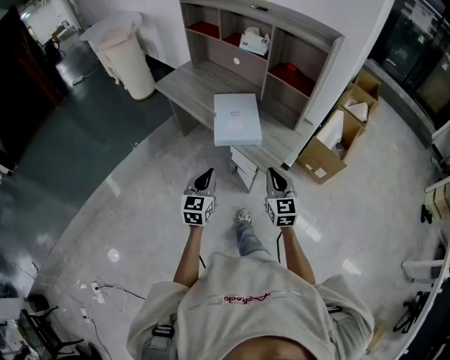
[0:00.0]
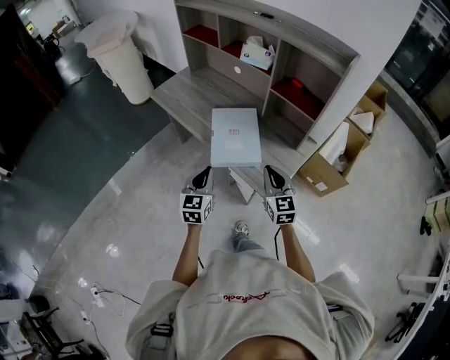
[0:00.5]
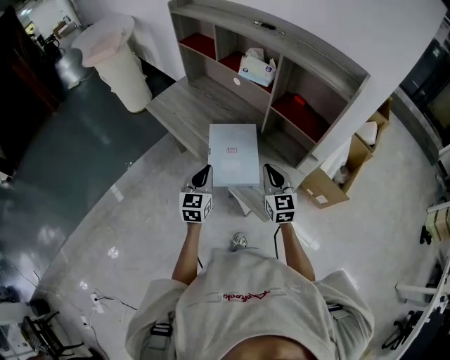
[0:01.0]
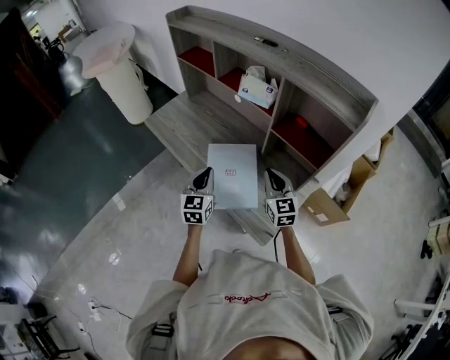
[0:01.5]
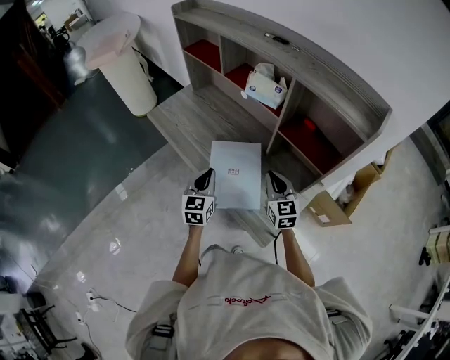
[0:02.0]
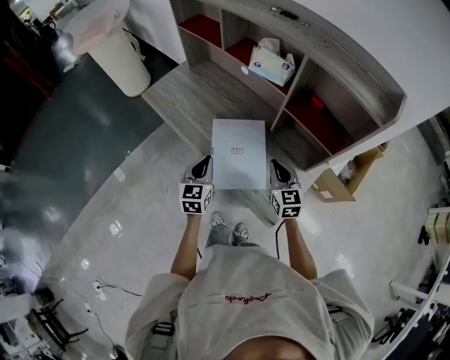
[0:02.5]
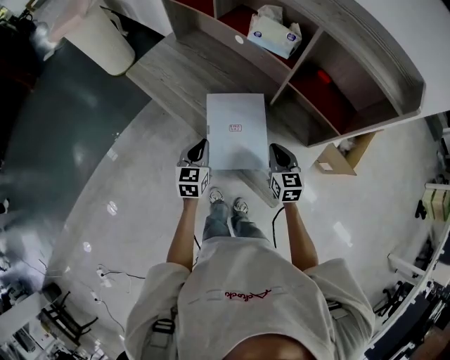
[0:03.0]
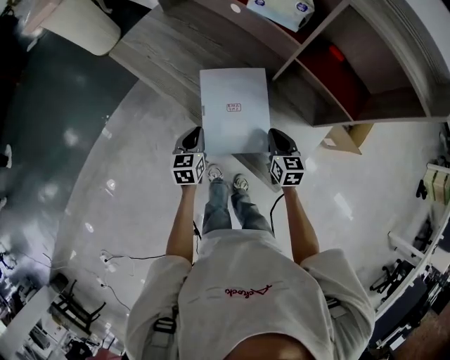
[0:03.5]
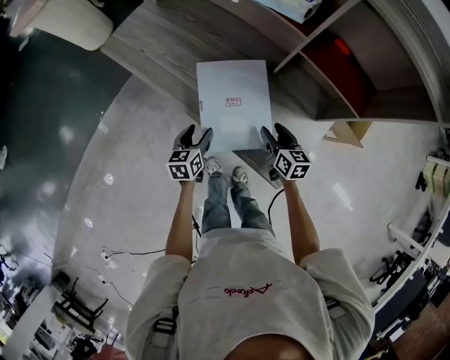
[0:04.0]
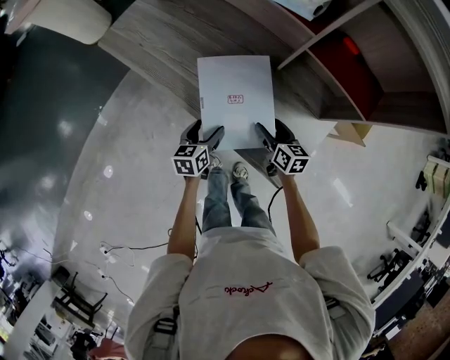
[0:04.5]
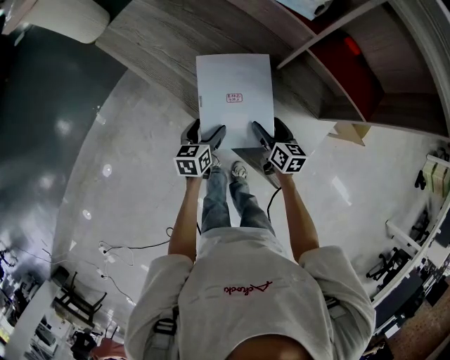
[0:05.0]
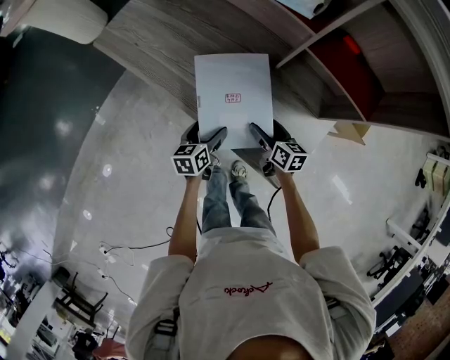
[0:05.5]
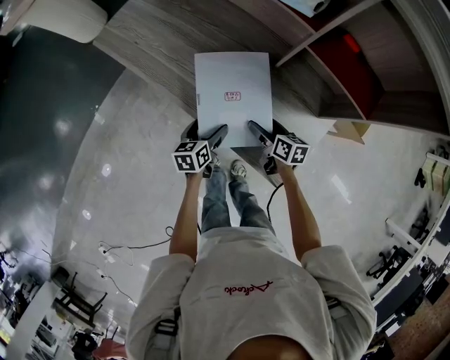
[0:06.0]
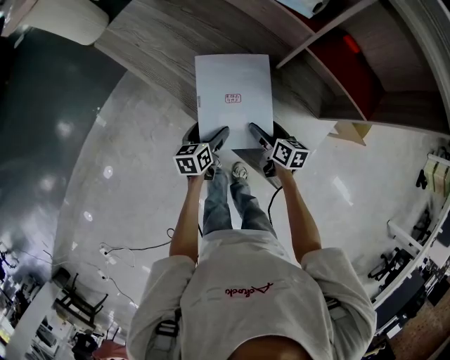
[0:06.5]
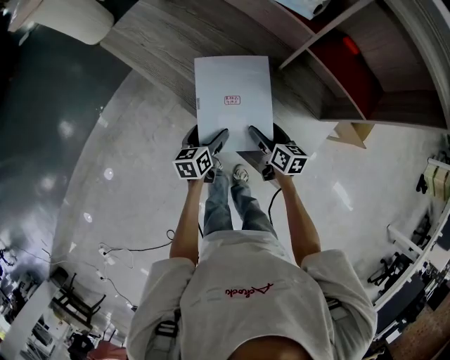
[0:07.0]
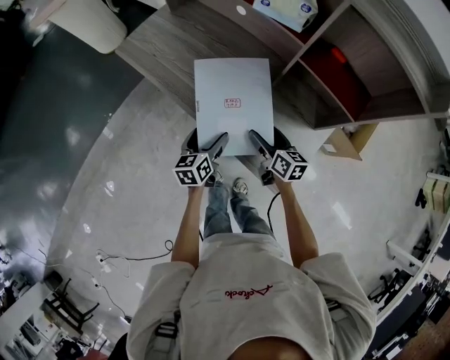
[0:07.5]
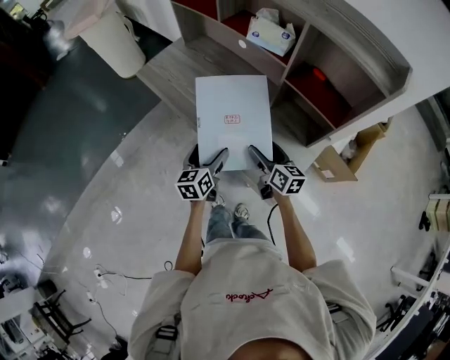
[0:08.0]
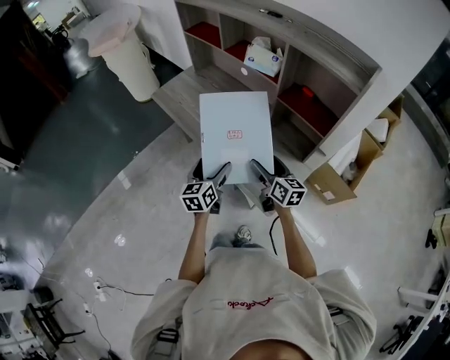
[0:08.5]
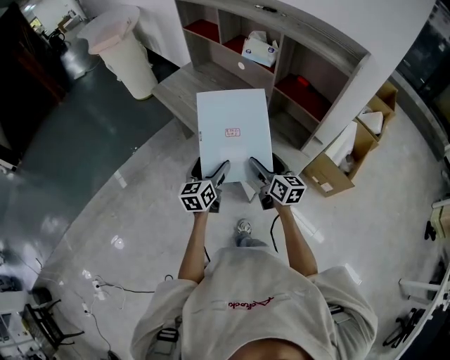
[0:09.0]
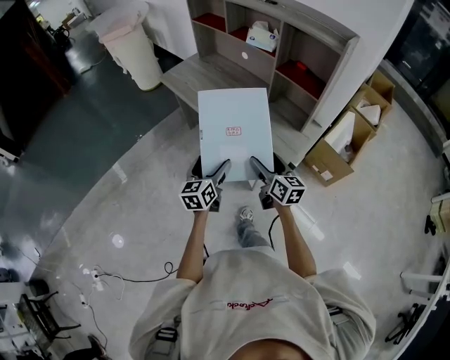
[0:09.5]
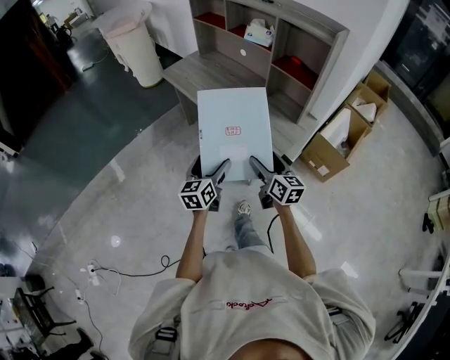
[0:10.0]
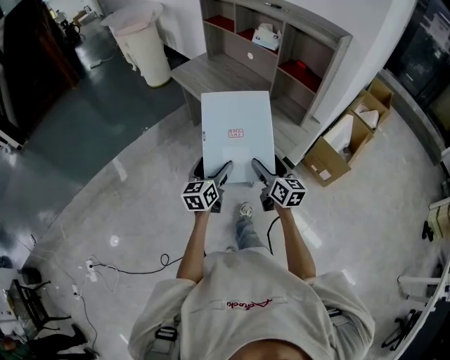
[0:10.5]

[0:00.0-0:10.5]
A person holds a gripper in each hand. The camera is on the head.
0:00.0 to 0:02.0: Both grippers move forward, about 35 cm.
0:02.0 to 0:04.0: The two grippers go about 20 cm downward. The right gripper swivels some 30 degrees, and opens. Meanwhile the left gripper turns by about 30 degrees, and opens its fingers.
0:04.0 to 0:06.5: The left gripper ends up about 5 cm from where it was, and opens up; the right gripper ends up some 5 cm from where it was, and opens up.
0:06.5 to 0:08.5: The right gripper moves upward, about 20 cm, and swivels about 30 degrees, while the left gripper moves upward and backward, some 25 cm, and rotates some 30 degrees.
0:08.5 to 0:10.5: The two grippers go roughly 30 cm backward.

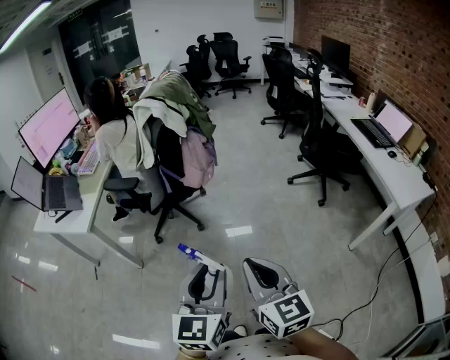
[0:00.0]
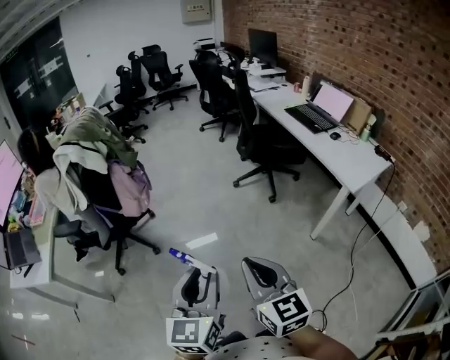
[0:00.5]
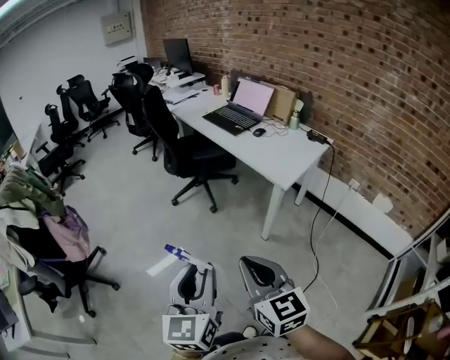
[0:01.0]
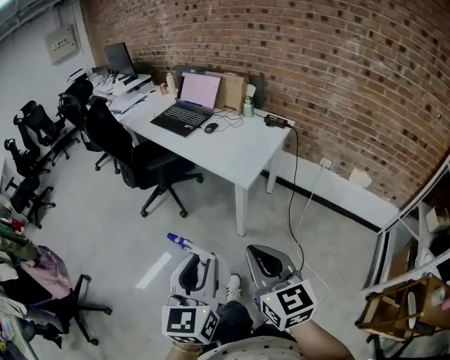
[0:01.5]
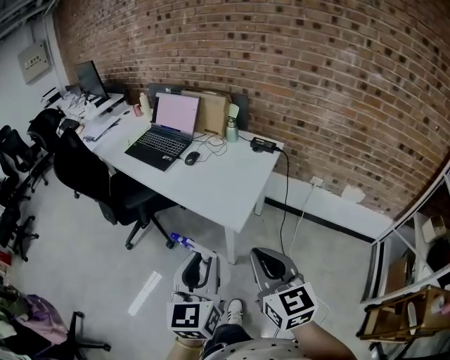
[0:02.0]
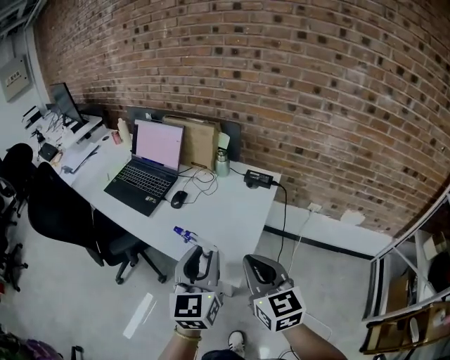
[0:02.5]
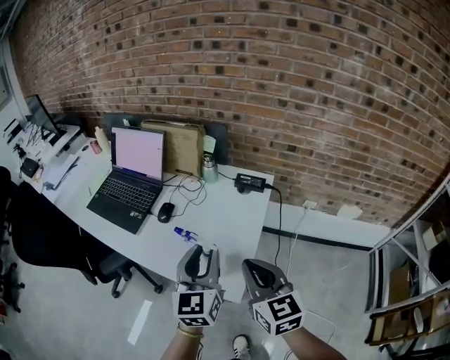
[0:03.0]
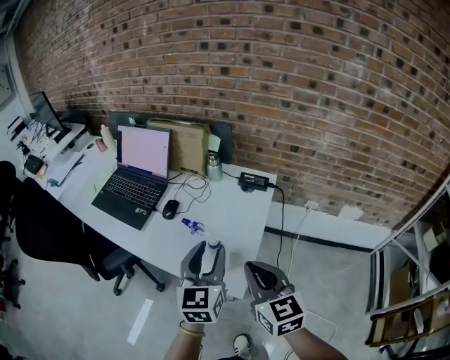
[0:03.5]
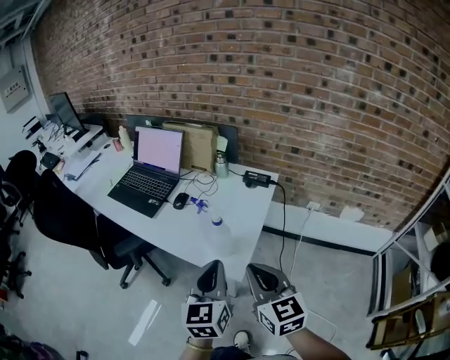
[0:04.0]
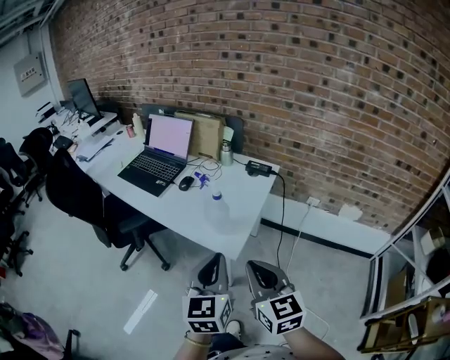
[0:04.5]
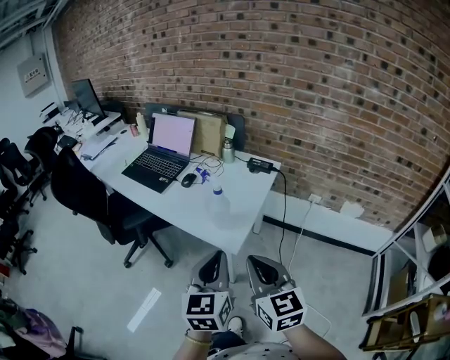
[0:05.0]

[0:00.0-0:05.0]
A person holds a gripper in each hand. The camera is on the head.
0:00.0 to 0:02.5: The two grippers travel together, some 1 m. The right gripper turns by about 60 degrees. Meanwhile the left gripper rotates approximately 60 degrees.
0:02.5 to 0:05.0: Both grippers travel together backward, approximately 15 cm. The left gripper closes its fingers.

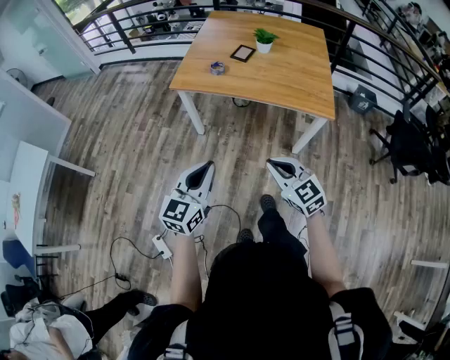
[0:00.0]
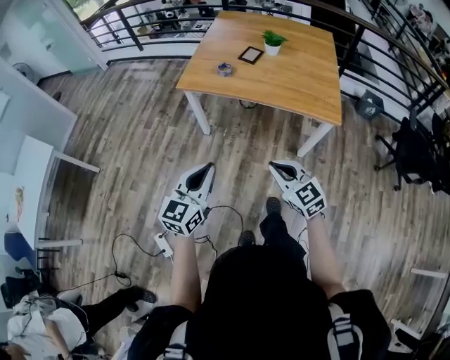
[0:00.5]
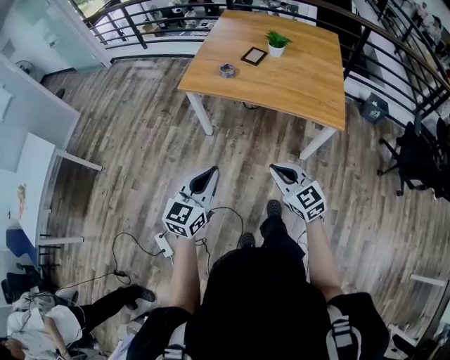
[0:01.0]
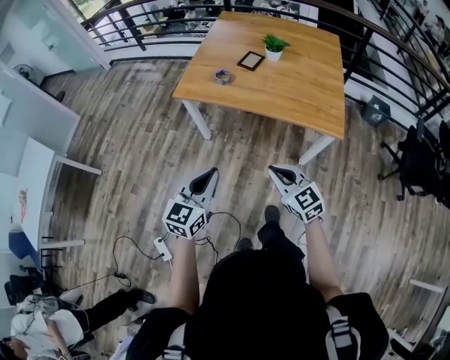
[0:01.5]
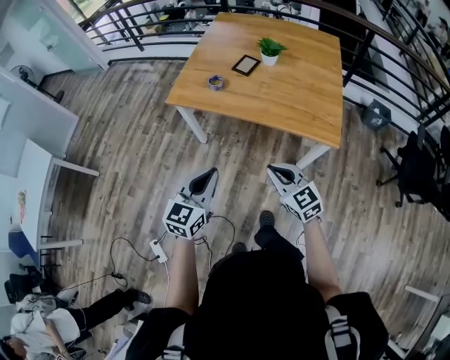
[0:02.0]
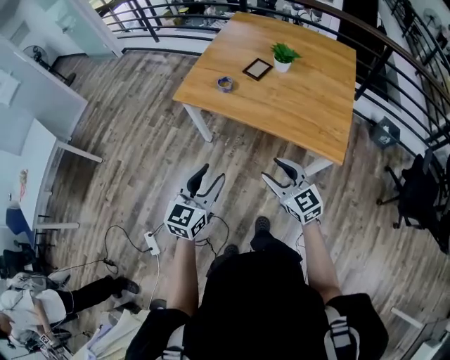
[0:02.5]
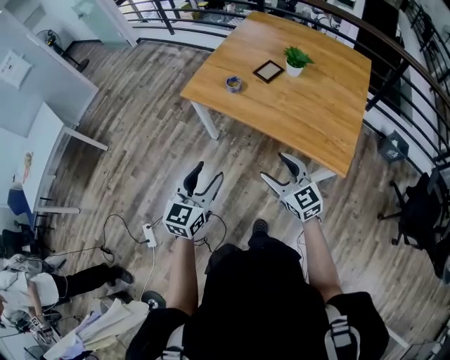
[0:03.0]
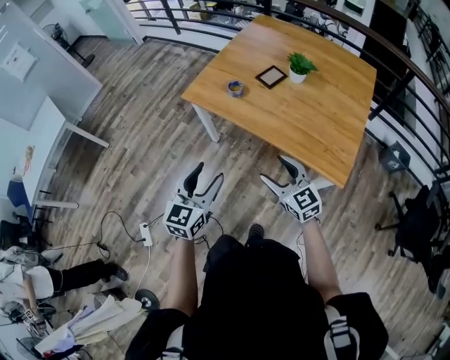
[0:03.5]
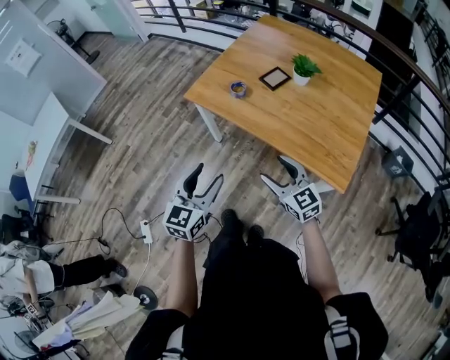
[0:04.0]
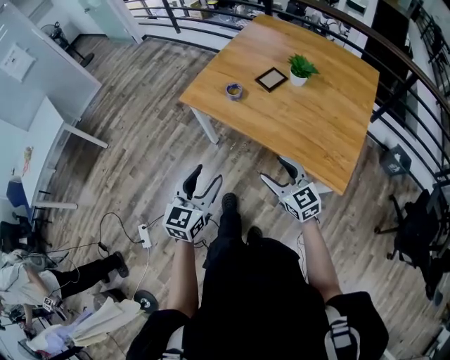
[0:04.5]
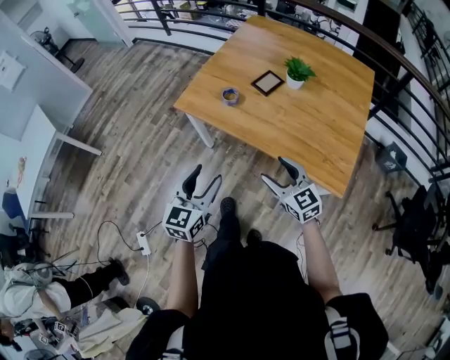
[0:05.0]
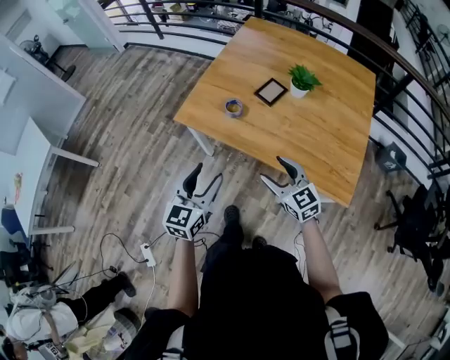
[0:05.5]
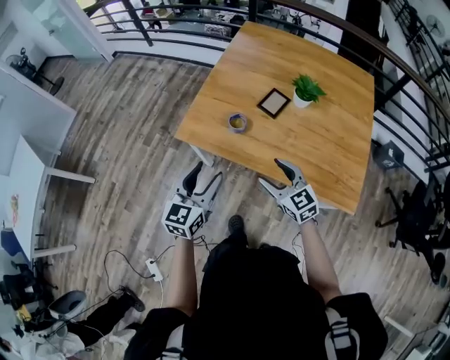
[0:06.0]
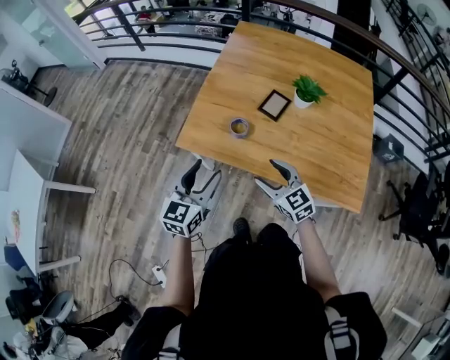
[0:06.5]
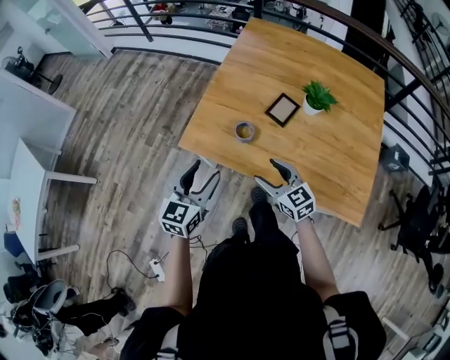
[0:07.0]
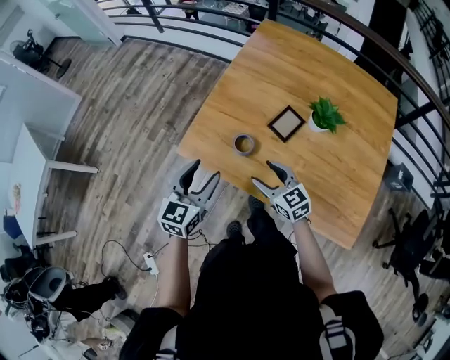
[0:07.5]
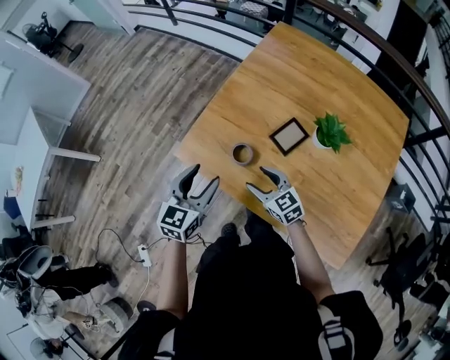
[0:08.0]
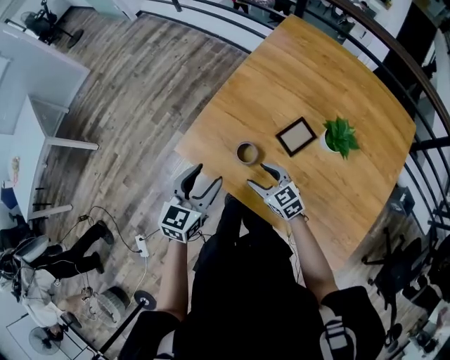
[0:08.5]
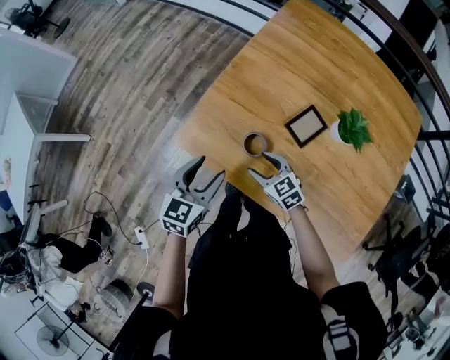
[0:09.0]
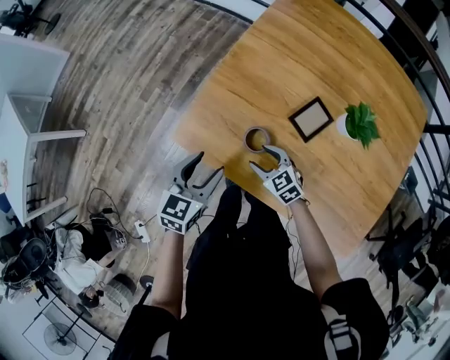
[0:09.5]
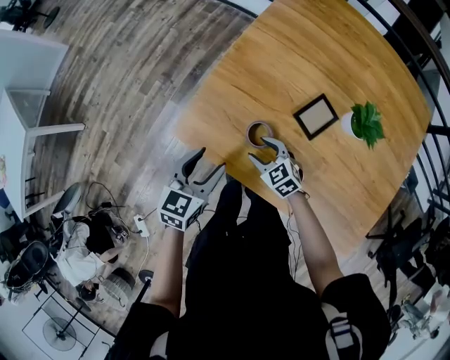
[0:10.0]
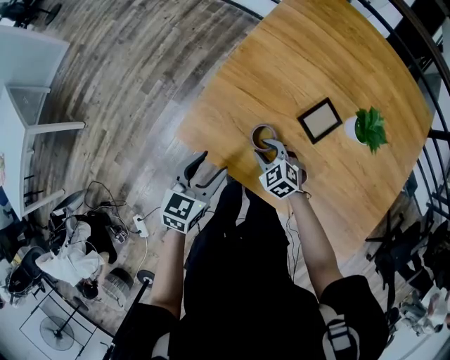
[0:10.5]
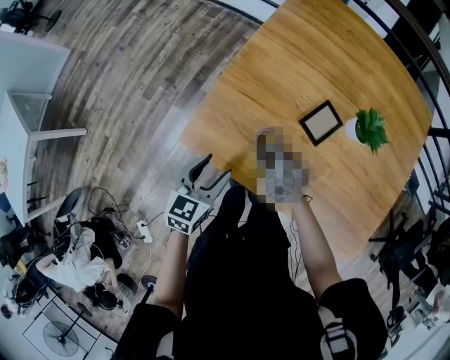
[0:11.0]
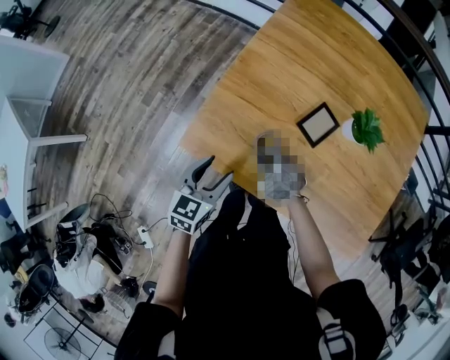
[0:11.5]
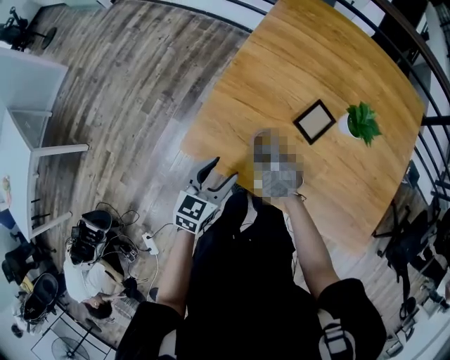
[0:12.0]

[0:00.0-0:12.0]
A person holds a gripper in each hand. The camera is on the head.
0:00.0 to 0:02.0: The two grippers go approximately 15 cm forward and to the right.
0:02.0 to 0:04.0: The left gripper goes roughly 5 cm forward, and opens its fingers, while the right gripper shifts roughly 10 cm forward and to the right, and opens its fingers.
0:04.0 to 0:06.0: The grippers both shift forward by approximately 20 cm.
0:06.0 to 0:08.0: The left gripper travels forward by roughly 15 cm; the right gripper heads forward and downward, covering about 20 cm.
0:08.0 to 0:10.0: The grippers both shift downward and forward by about 15 cm.
0:10.0 to 0:12.0: The right gripper closes its fingers.
